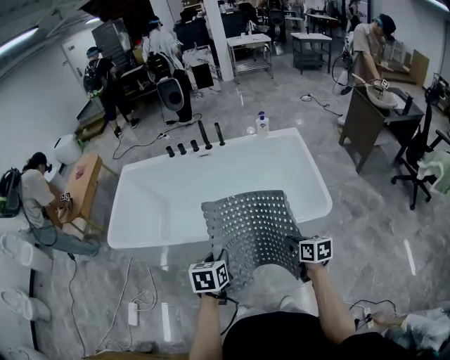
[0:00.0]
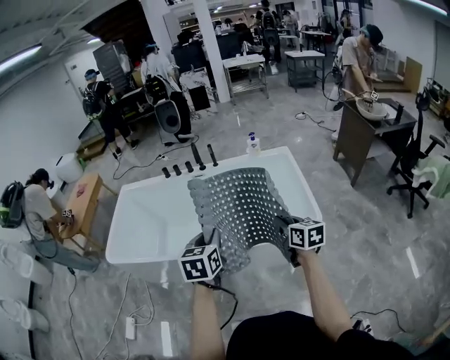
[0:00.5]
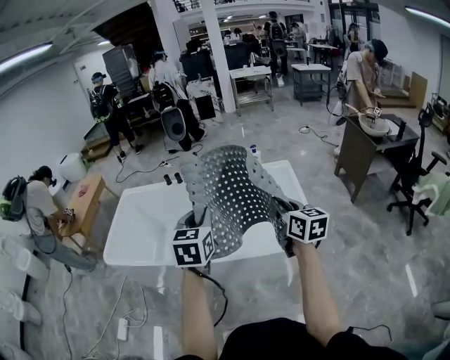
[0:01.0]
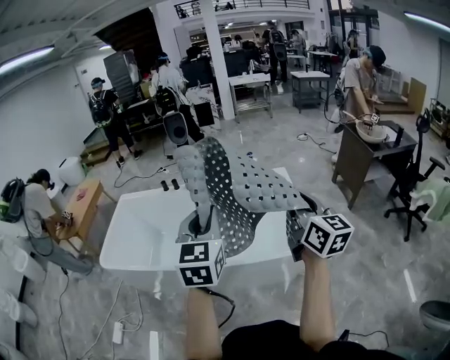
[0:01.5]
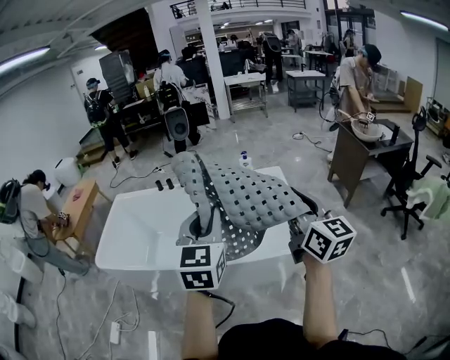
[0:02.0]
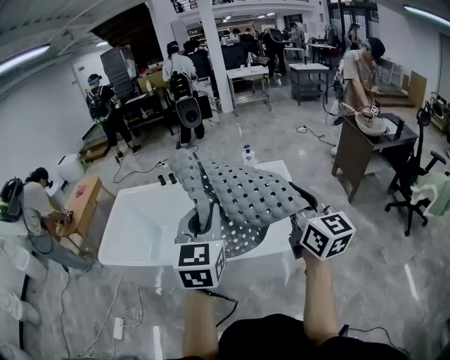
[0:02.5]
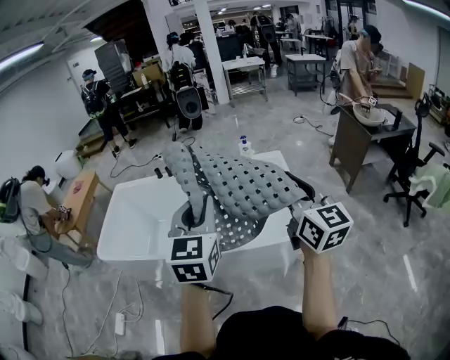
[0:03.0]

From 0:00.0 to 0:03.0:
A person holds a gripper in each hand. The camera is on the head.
From 0:00.0 to 0:01.5: The right gripper travels upward by about 40 cm, and points its fingers approximately 40 degrees further upward. Meanwhile the left gripper moves upward and to the right, about 35 cm, and angles its fingers upward, by some 40 degrees.
From 0:01.5 to 0:03.0: The grippers move only a little.

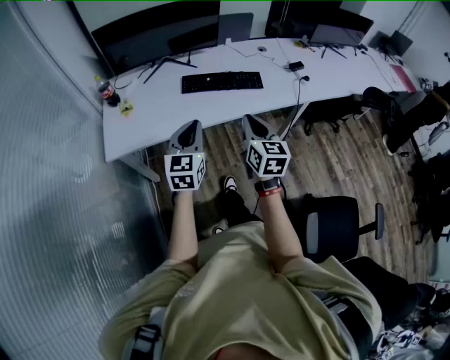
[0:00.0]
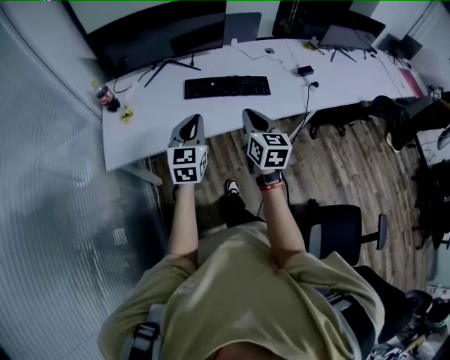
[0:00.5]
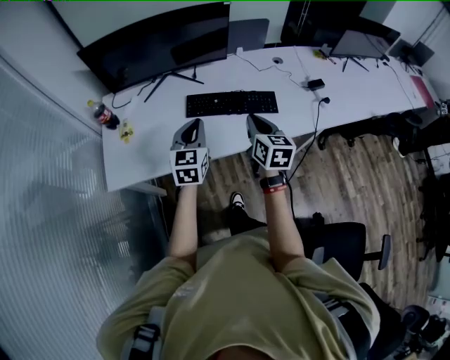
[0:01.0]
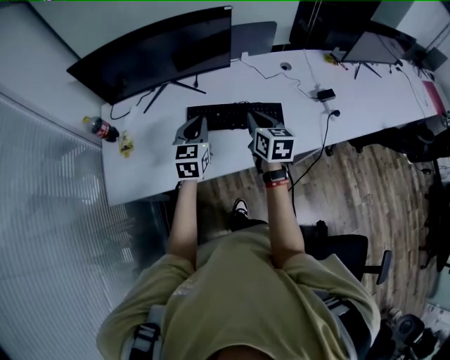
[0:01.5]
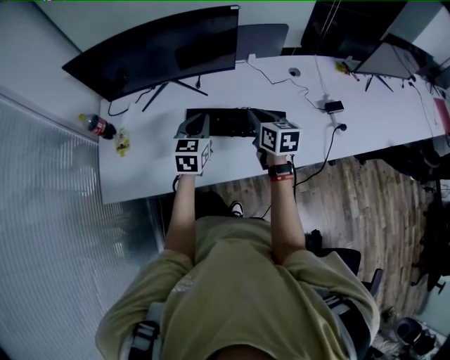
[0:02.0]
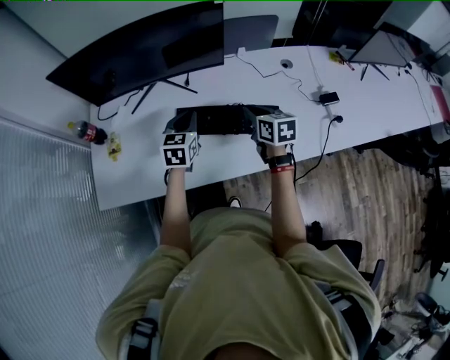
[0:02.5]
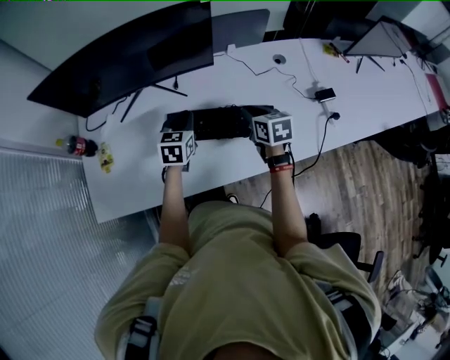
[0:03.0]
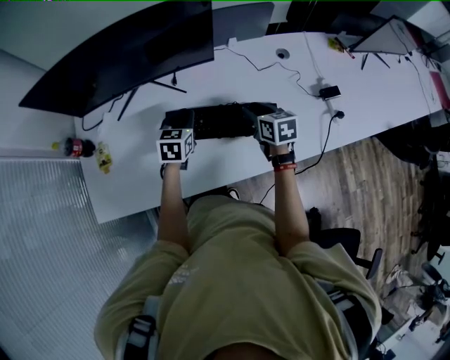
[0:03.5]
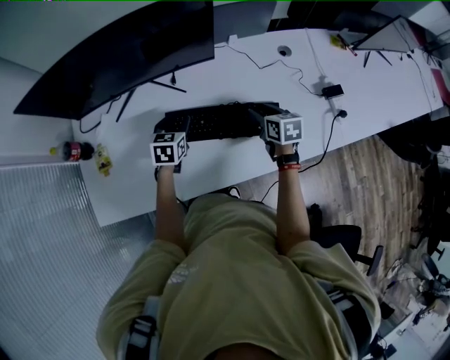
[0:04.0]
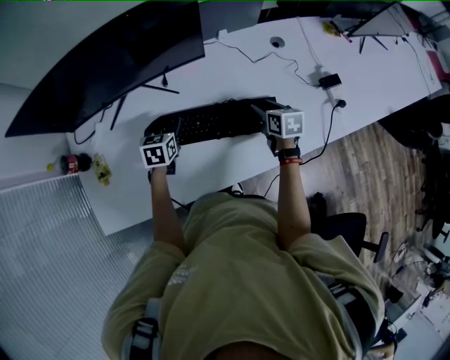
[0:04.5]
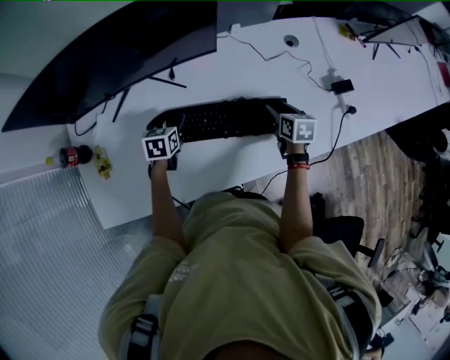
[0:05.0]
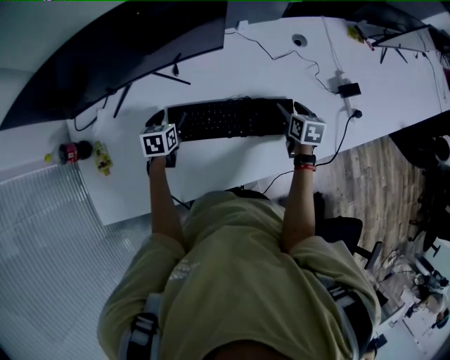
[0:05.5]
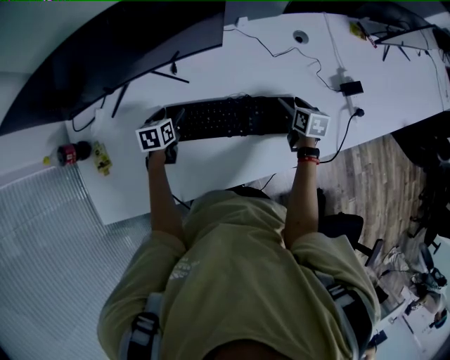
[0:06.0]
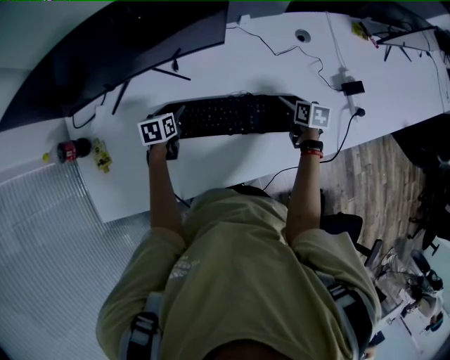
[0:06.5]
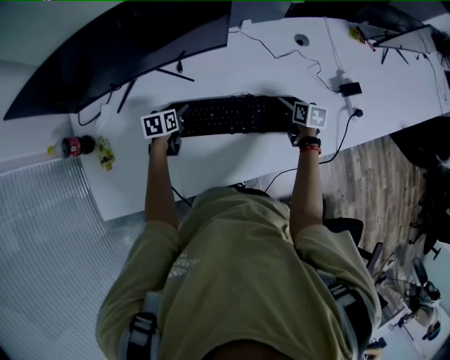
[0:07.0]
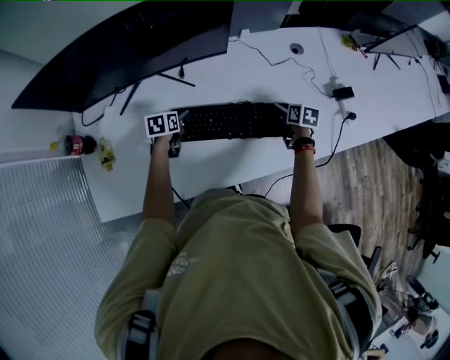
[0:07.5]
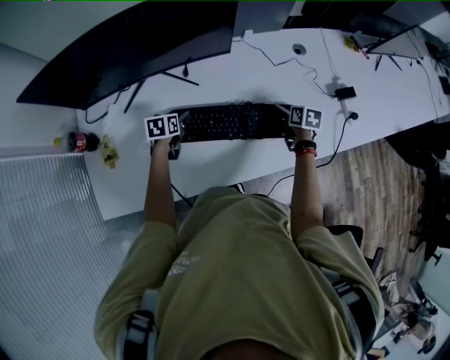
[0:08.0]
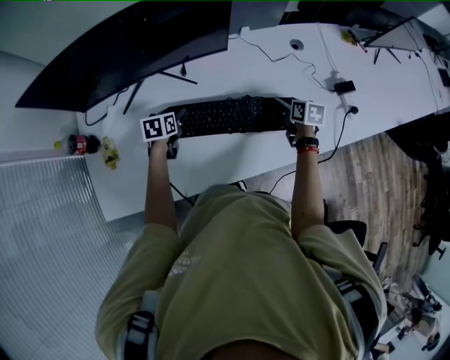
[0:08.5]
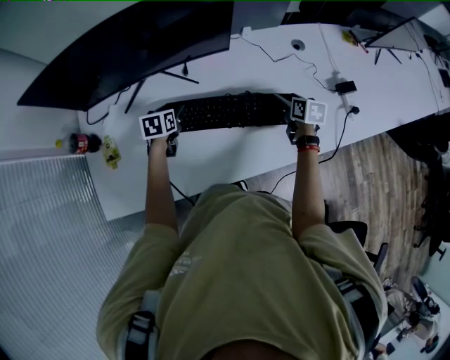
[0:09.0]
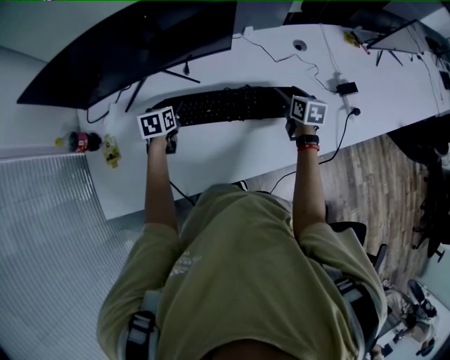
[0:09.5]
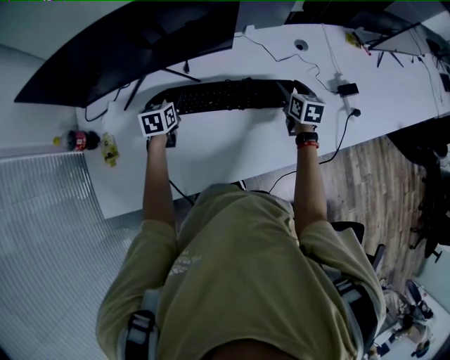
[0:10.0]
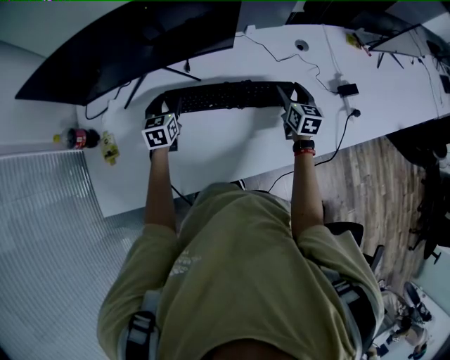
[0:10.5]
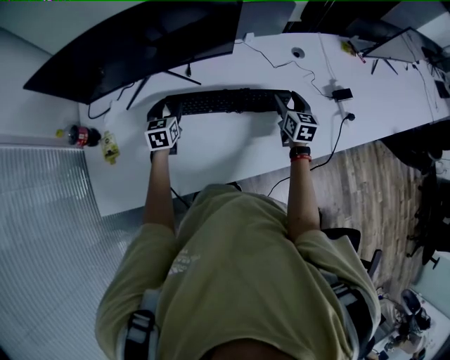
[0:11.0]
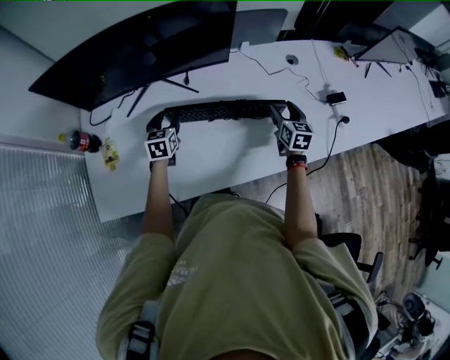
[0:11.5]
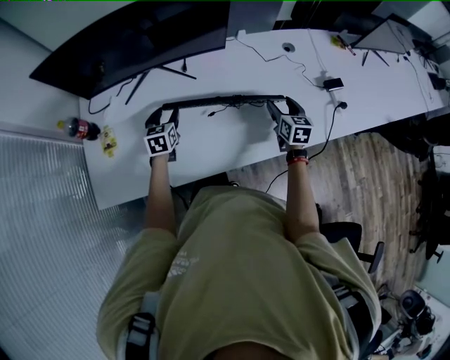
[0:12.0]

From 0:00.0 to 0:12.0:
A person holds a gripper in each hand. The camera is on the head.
From 0:00.0 to 0:02.0: The two grippers travel together, forward, about 40 cm. The right gripper turns by roughly 20 degrees.
From 0:02.0 to 0:04.0: The left gripper moves downward and forward, approximately 20 cm, and opens up. Meanwhile the right gripper moves downward, forward and to the right, some 15 cm, and opens its fingers.
From 0:04.0 to 0:06.0: The right gripper heads downward and to the right, covering roughly 10 cm, and opens its fingers; the left gripper goes roughly 10 cm downward and to the left, and opens its fingers.
From 0:06.0 to 0:08.0: There are only small adjustments of the grippers.
From 0:08.0 to 0:10.0: The right gripper is displaced upward and forward by about 10 cm, and rotates approximately 20 degrees; the left gripper travels upward by about 5 cm.
From 0:10.0 to 0:12.0: The two grippers go approximately 10 cm backward.

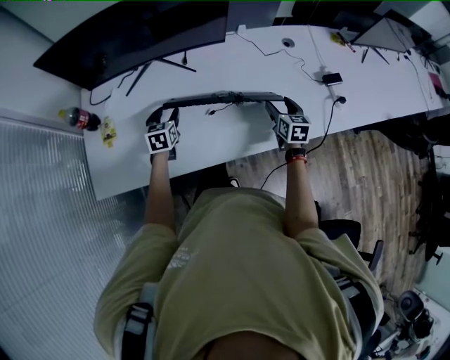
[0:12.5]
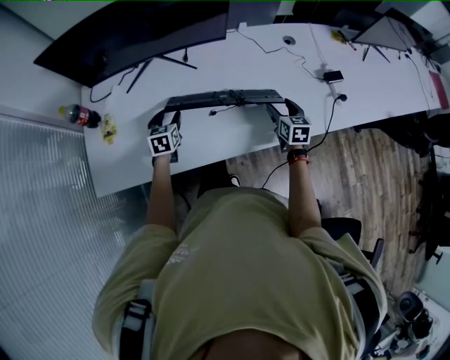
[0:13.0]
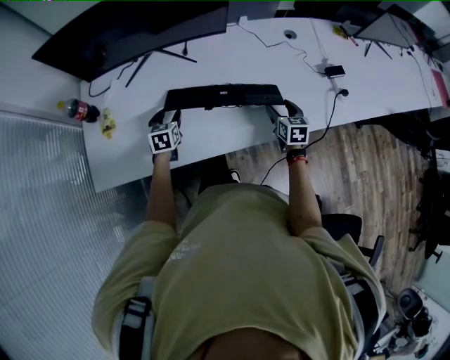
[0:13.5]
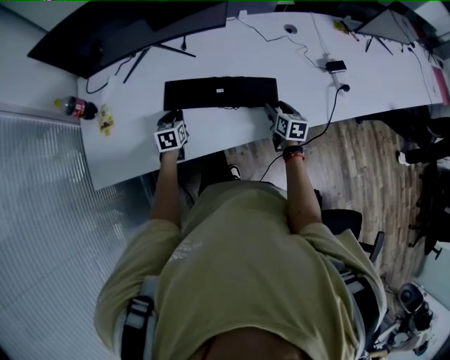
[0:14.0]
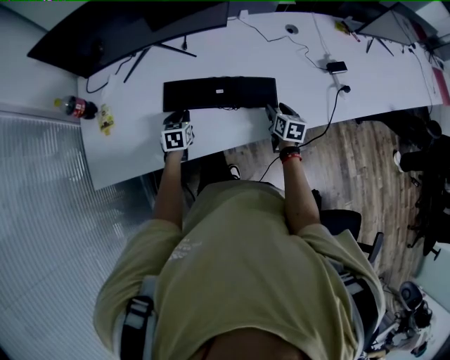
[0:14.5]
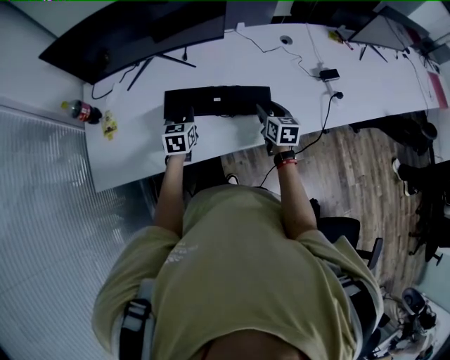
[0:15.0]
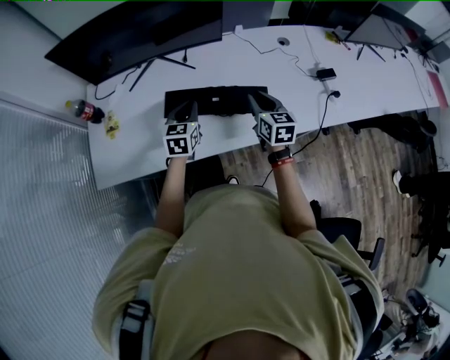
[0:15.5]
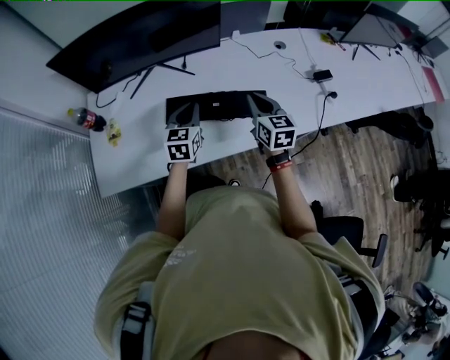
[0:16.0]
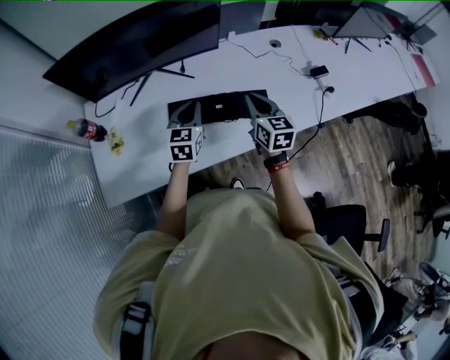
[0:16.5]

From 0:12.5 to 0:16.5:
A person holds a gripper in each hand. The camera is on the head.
From 0:12.5 to 0:14.5: The right gripper shifts some 5 cm downward, while the left gripper heads downward and backward, covering roughly 10 cm, and closes.
From 0:14.5 to 0:16.5: The right gripper goes roughly 25 cm upward and to the left, turns by some 20 degrees, and closes, while the left gripper goes roughly 25 cm upward, and turns by some 30 degrees.

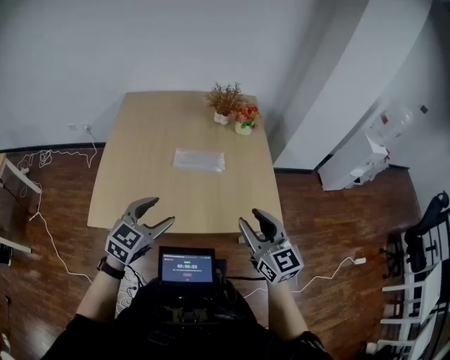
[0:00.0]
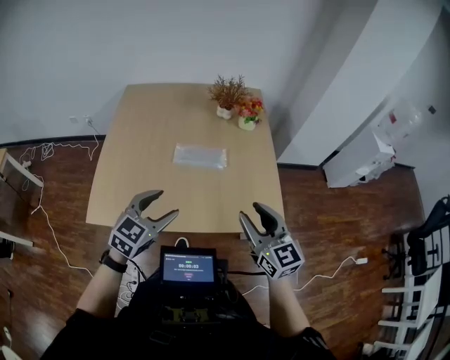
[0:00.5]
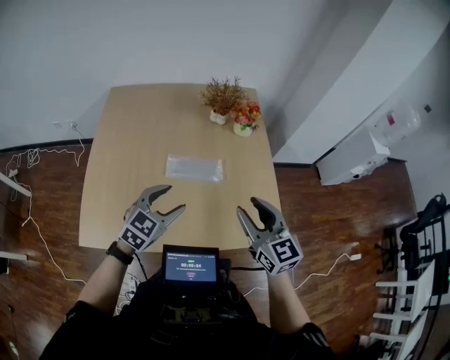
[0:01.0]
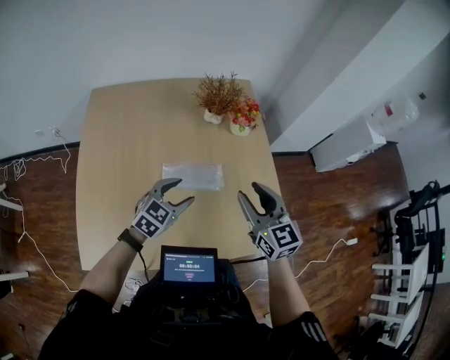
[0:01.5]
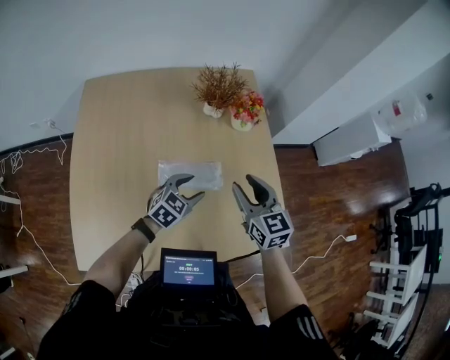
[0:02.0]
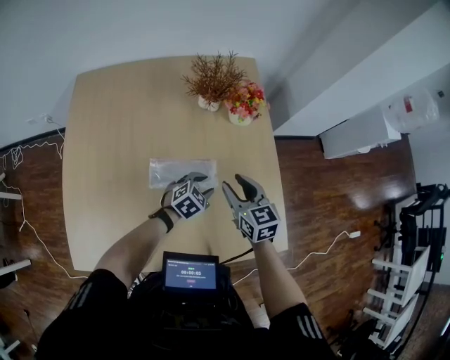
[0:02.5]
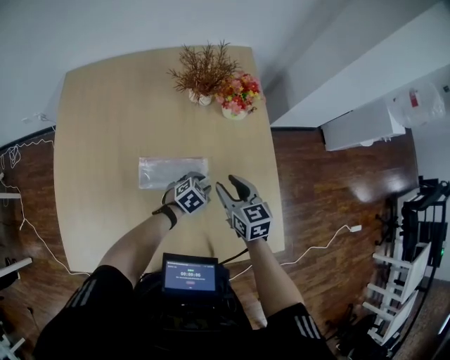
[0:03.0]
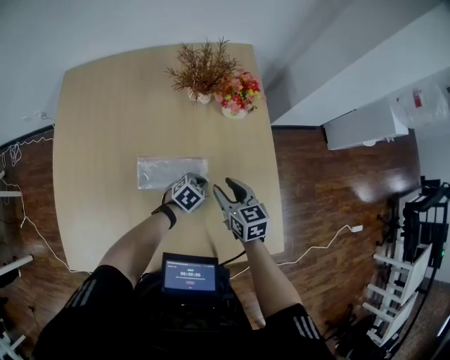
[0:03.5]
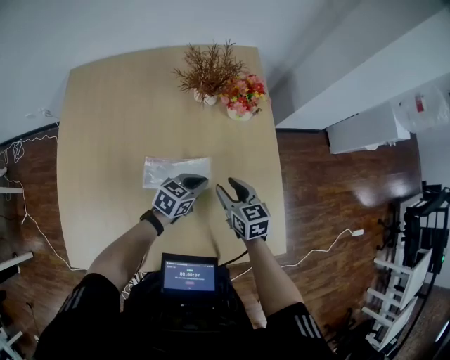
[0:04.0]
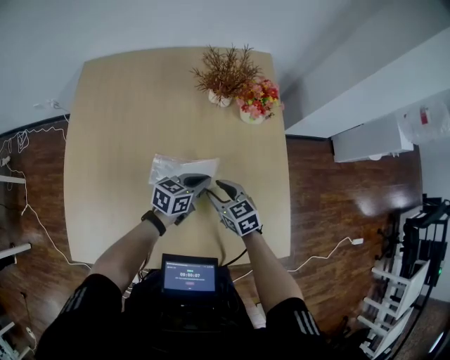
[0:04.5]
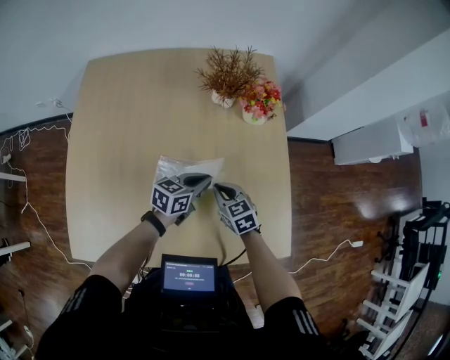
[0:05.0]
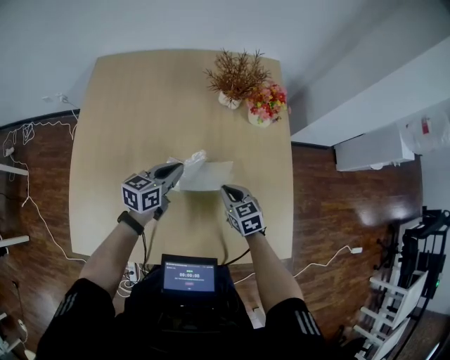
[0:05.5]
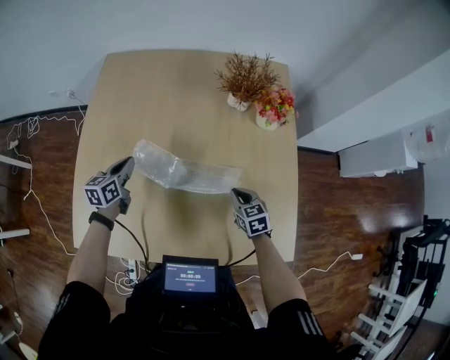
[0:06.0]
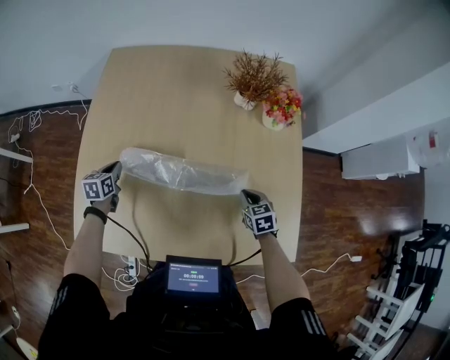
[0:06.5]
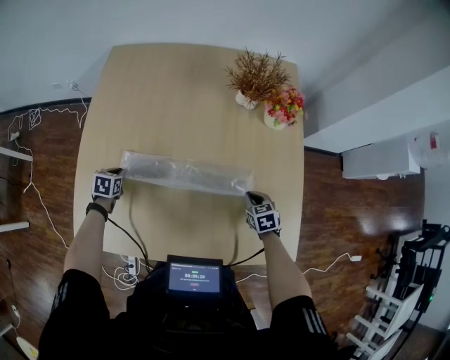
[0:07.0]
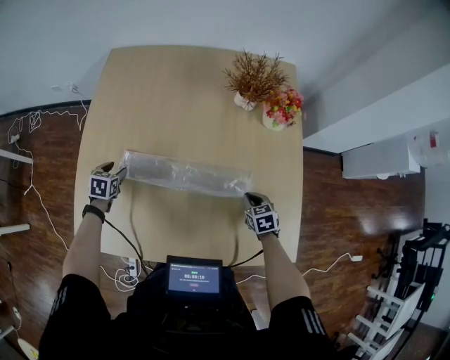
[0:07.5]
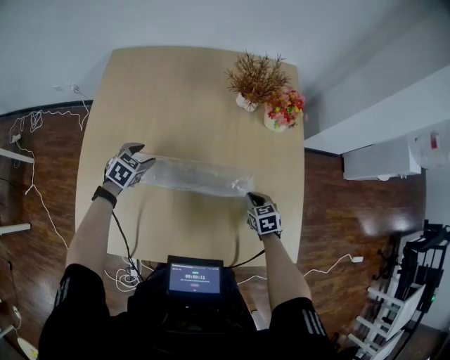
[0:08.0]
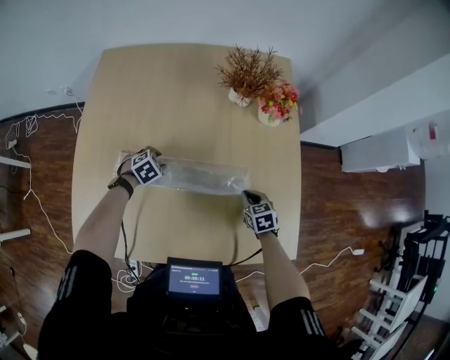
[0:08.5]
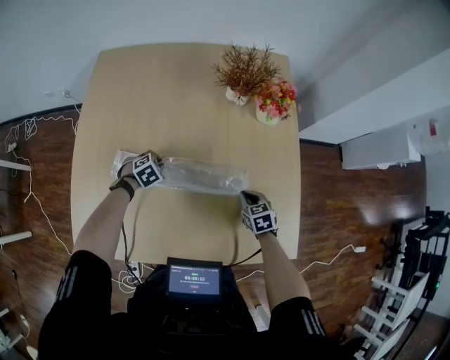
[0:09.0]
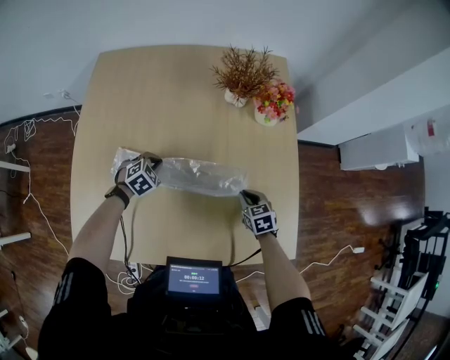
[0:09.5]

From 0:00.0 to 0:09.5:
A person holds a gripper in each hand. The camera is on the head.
From 0:00.0 to 0:02.0: The right gripper moves forward, some 30 cm. Meanwhile the left gripper shifts approximately 35 cm forward and downward, and turns by roughly 20 degrees.
From 0:02.0 to 0:04.0: The left gripper shifts roughly 15 cm downward, forward and to the right, turns by some 20 degrees, and closes up. The right gripper goes about 15 cm downward, and turns by roughly 20 degrees.
From 0:04.0 to 0:05.5: The right gripper shifts about 5 cm to the left, and closes; the left gripper is displaced to the left and upward by approximately 15 cm, and changes its angle by roughly 30 degrees.
From 0:05.5 to 0:07.5: The left gripper is displaced to the left and downward by roughly 30 cm, angles its fingers downward, by roughly 40 degrees, and opens its fingers; the right gripper travels downward and to the right by about 10 cm.
From 0:07.5 to 0:09.5: The left gripper travels to the right by about 20 cm, rolls clockwise, seen from behind, by roughly 40 degrees, and closes its fingers.
